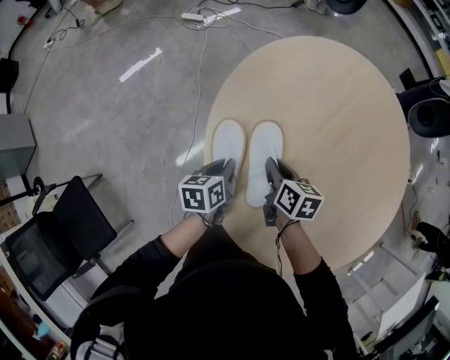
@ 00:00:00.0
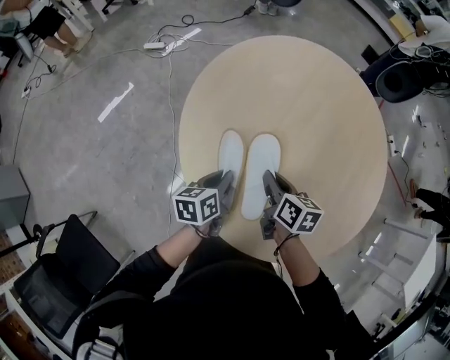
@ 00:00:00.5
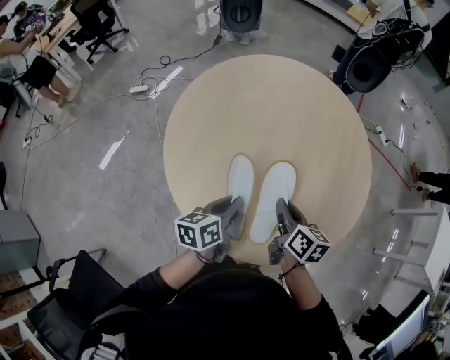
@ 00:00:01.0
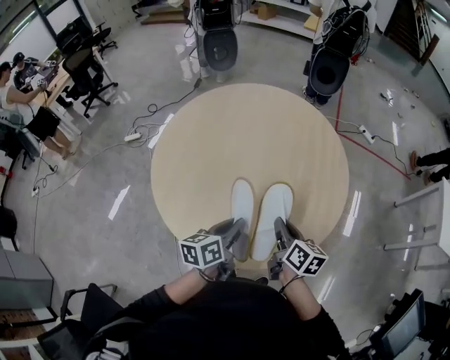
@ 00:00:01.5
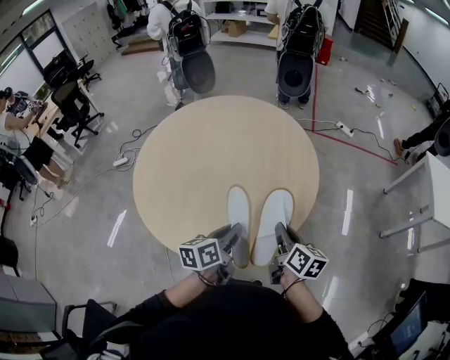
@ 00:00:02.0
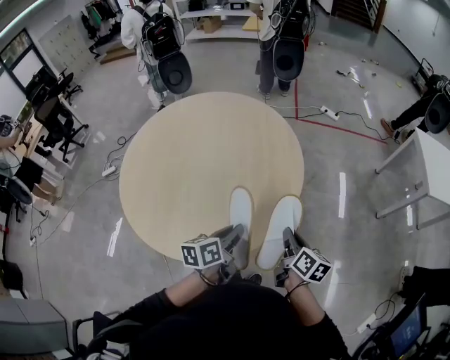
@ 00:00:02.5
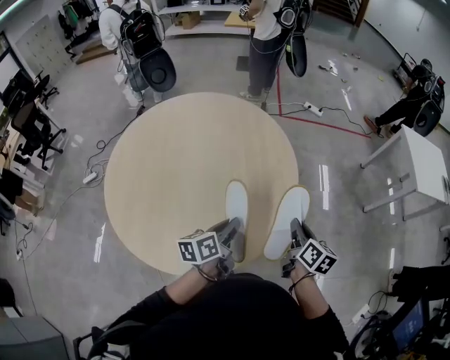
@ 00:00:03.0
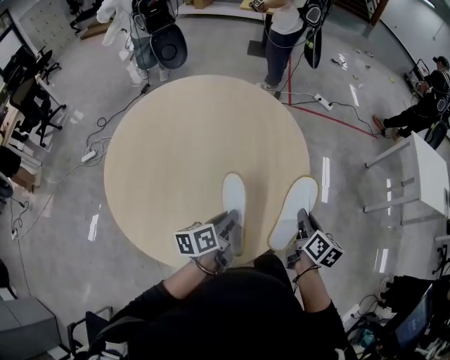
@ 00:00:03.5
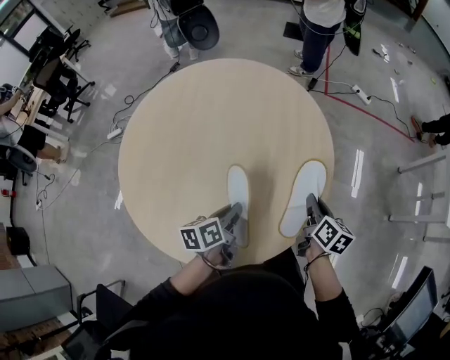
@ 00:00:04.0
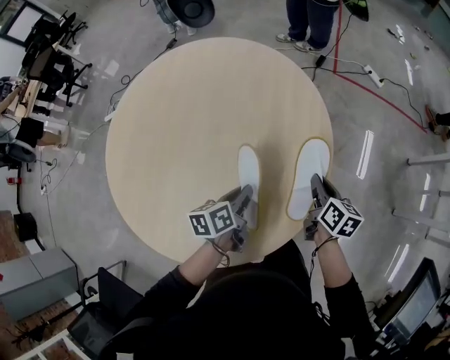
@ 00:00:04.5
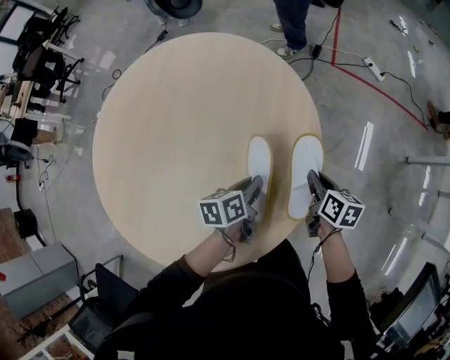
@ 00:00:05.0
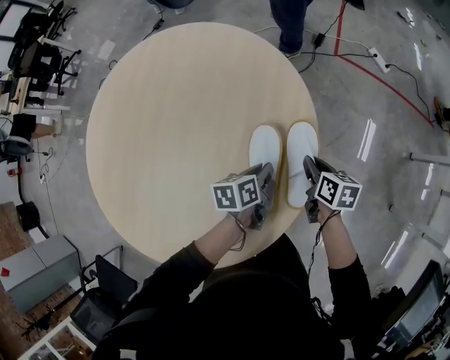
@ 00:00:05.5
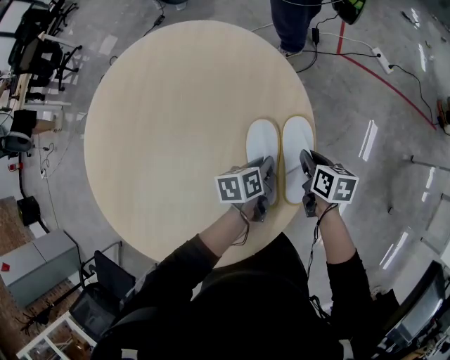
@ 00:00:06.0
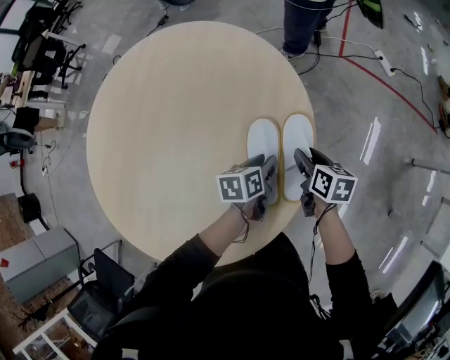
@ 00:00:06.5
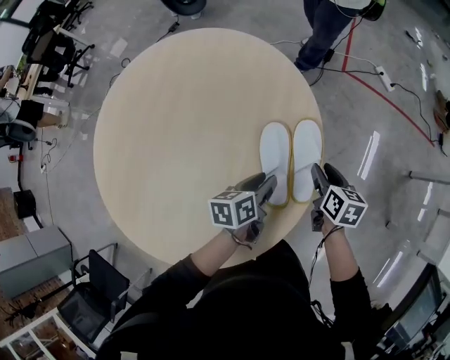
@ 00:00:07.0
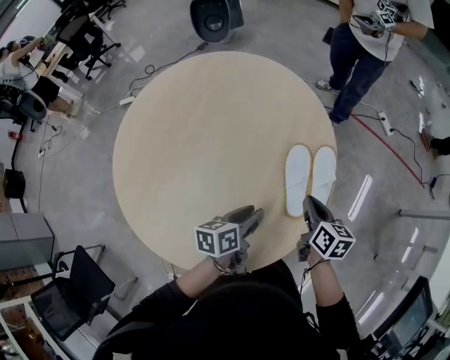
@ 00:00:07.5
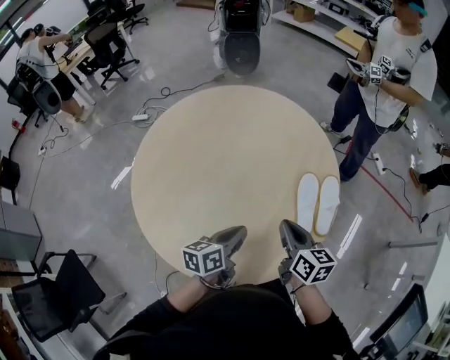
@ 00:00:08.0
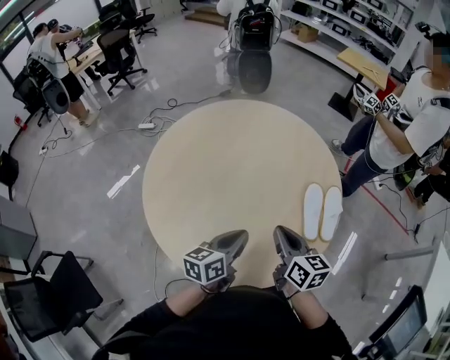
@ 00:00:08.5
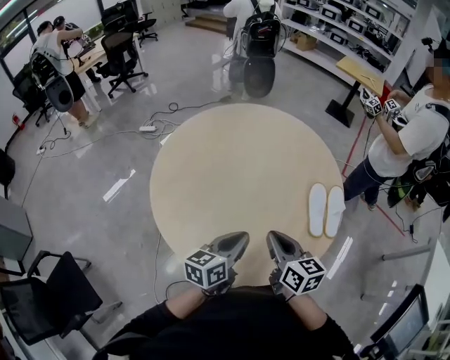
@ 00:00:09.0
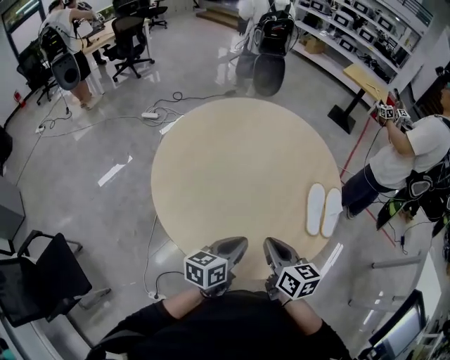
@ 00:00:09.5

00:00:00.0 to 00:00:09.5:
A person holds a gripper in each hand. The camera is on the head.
00:00:00.0 to 00:00:02.0: The pair of grippers is taken roughly 50 cm. The left gripper changes its angle by approximately 40 degrees. The right gripper turns by about 50 degrees.
00:00:02.0 to 00:00:04.0: The left gripper heads forward and downward, covering roughly 20 cm. Meanwhile the right gripper moves forward, about 20 cm.
00:00:04.0 to 00:00:05.5: The left gripper is displaced forward, to the right and downward by approximately 35 cm; the right gripper travels forward, downward and to the right by approximately 30 cm, and changes its angle by roughly 30 degrees.
00:00:05.5 to 00:00:07.5: The left gripper shifts approximately 20 cm backward, to the left and upward, and opens up, while the right gripper shifts about 20 cm upward, to the left and backward, and opens and closes again.
00:00:07.5 to 00:00:09.5: Both grippers travel together to the left, backward and upward, roughly 35 cm. The right gripper changes its angle by some 30 degrees; the left gripper closes.

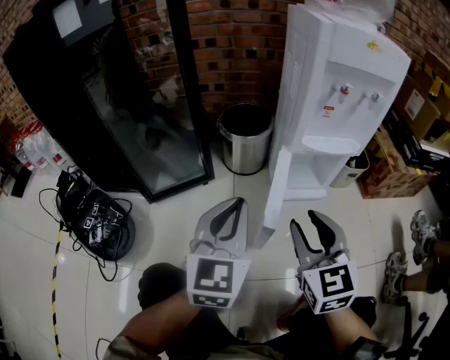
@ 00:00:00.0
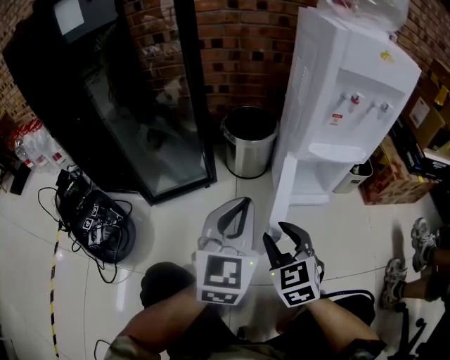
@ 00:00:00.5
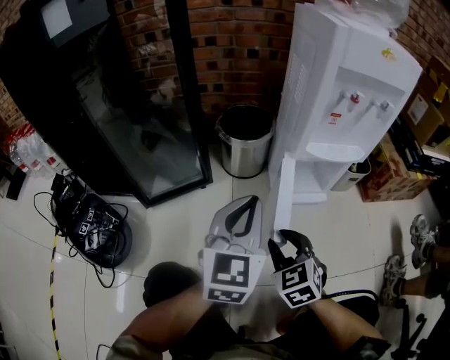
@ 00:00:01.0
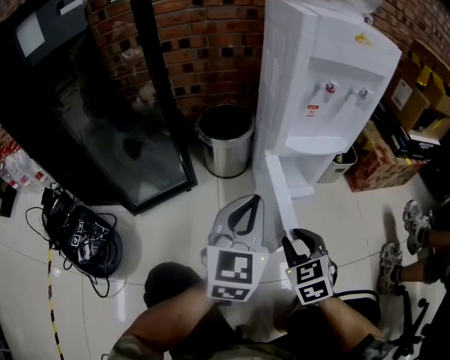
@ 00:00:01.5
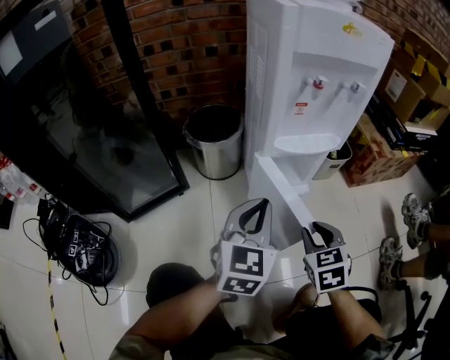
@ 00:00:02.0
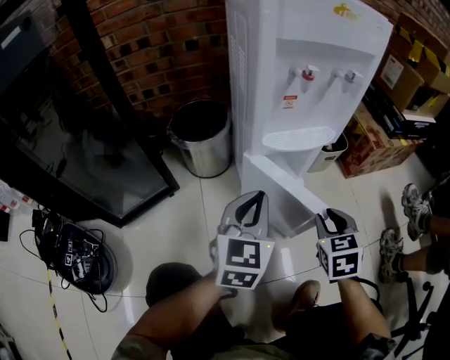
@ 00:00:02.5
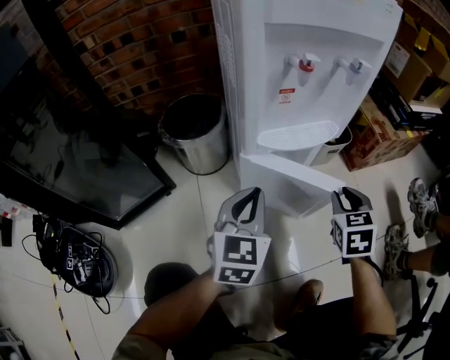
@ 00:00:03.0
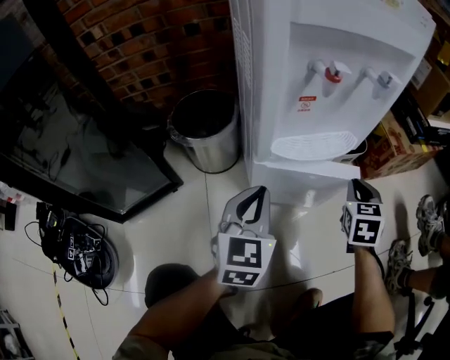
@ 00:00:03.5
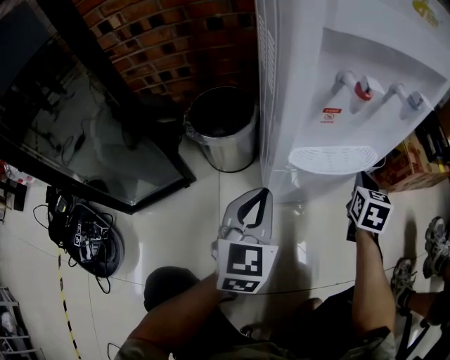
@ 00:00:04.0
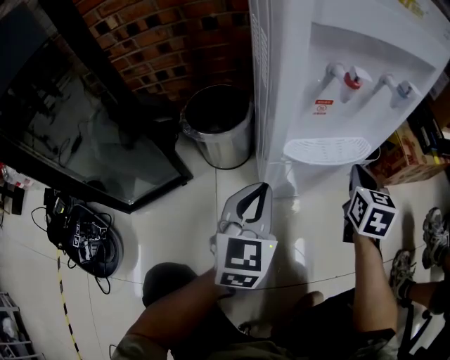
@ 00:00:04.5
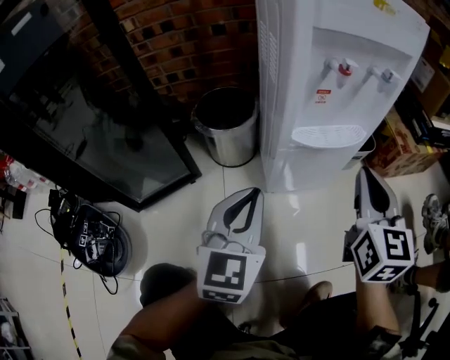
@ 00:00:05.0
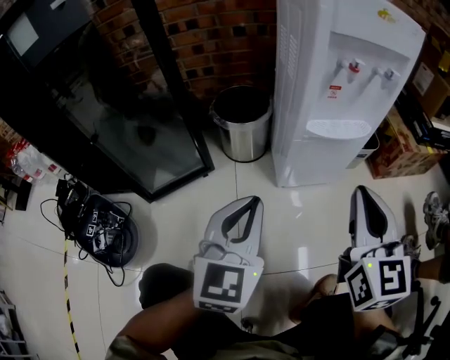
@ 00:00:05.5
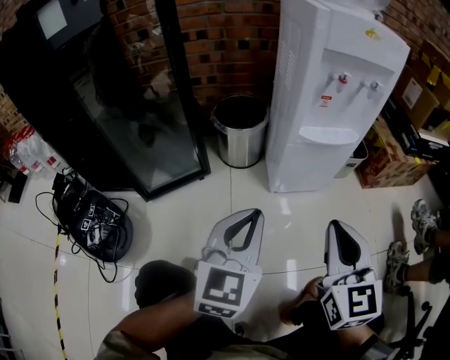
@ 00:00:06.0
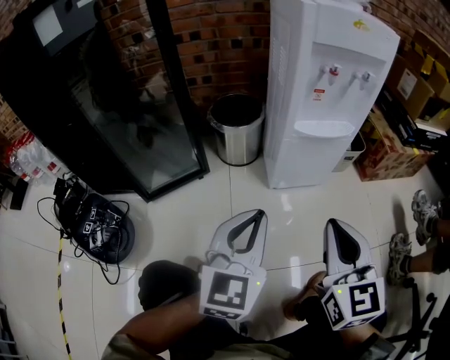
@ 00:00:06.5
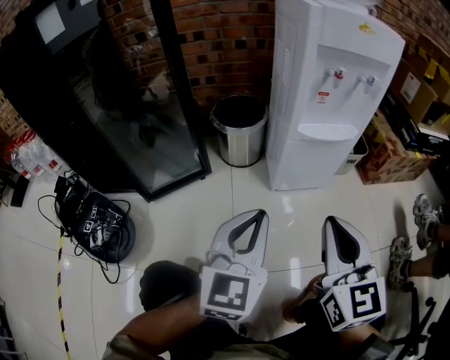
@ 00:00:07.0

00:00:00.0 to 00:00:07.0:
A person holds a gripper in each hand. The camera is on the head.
00:00:00.0 to 00:00:02.0: The right gripper heads downward and to the right, covering roughly 20 cm, and rotates roughly 30 degrees, while the left gripper heads to the right, forward and downward, covering roughly 15 cm.
00:00:02.0 to 00:00:03.5: The left gripper is displaced forward and downward by approximately 10 cm. The right gripper is displaced forward and to the right by about 20 cm.
00:00:03.5 to 00:00:05.0: The right gripper goes roughly 20 cm upward, to the left and backward, and changes its angle by approximately 30 degrees, while the left gripper travels backward and upward by some 10 cm.
00:00:05.0 to 00:00:07.0: The right gripper moves backward and to the left, roughly 20 cm, while the left gripper moves backward, about 15 cm.

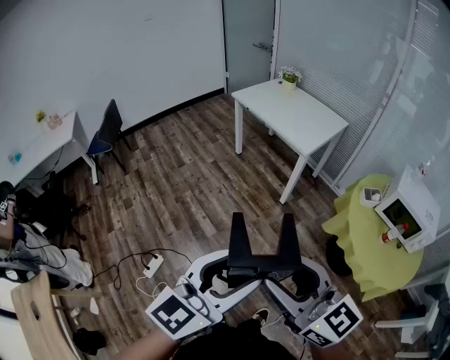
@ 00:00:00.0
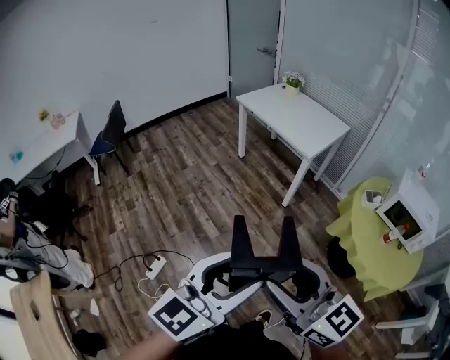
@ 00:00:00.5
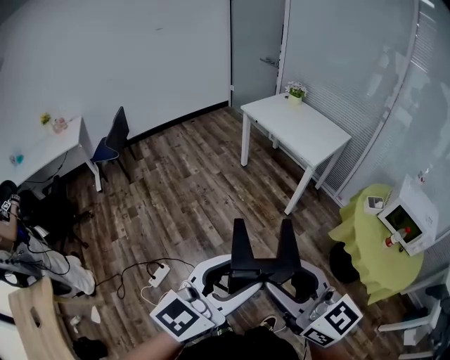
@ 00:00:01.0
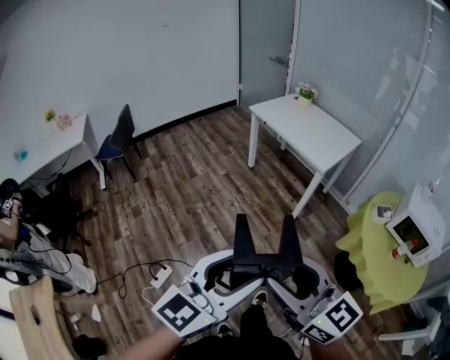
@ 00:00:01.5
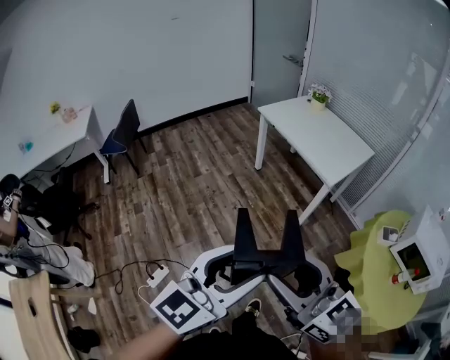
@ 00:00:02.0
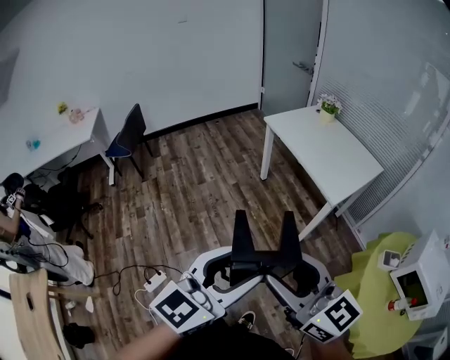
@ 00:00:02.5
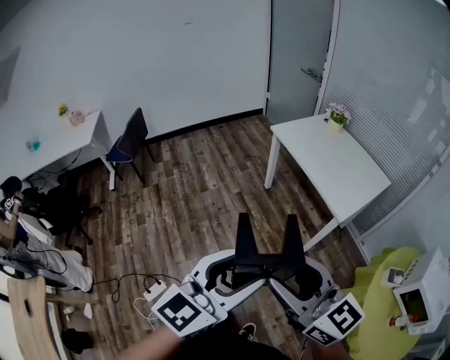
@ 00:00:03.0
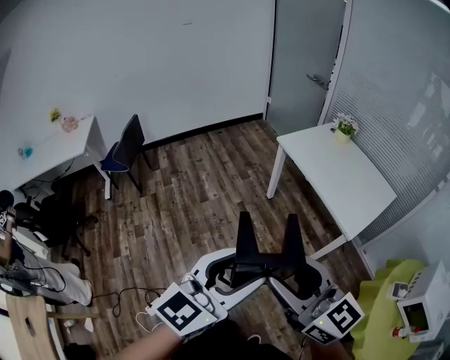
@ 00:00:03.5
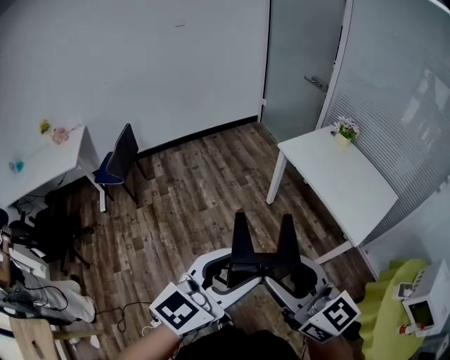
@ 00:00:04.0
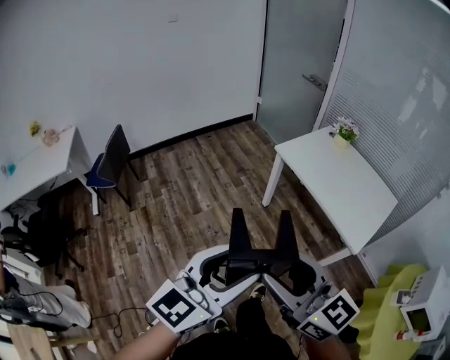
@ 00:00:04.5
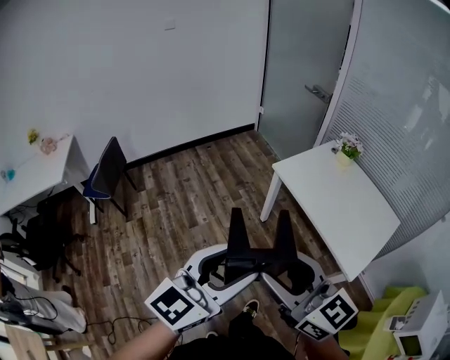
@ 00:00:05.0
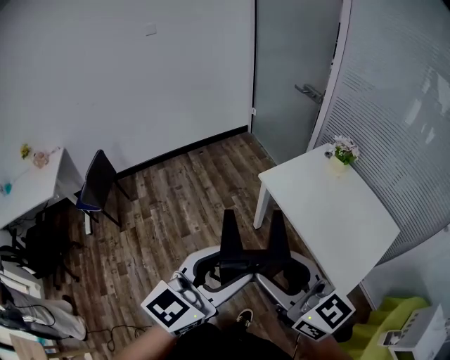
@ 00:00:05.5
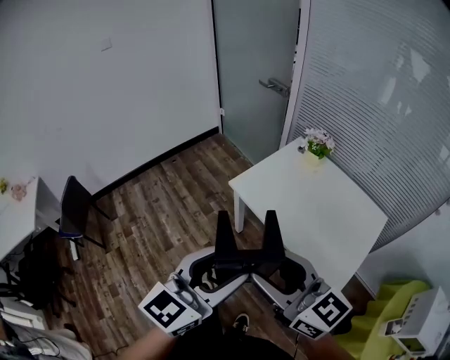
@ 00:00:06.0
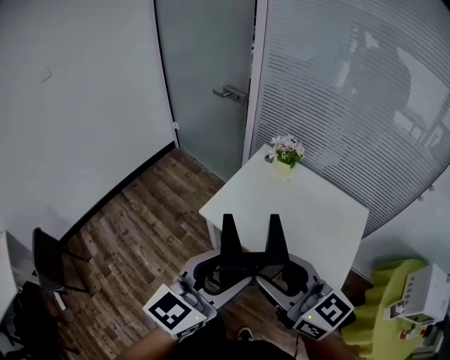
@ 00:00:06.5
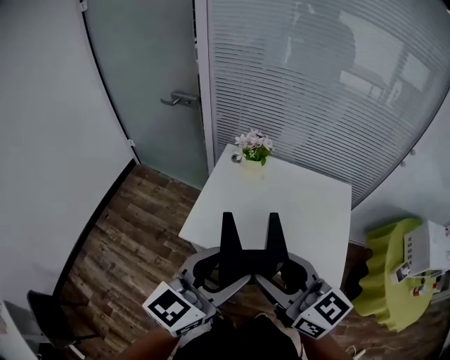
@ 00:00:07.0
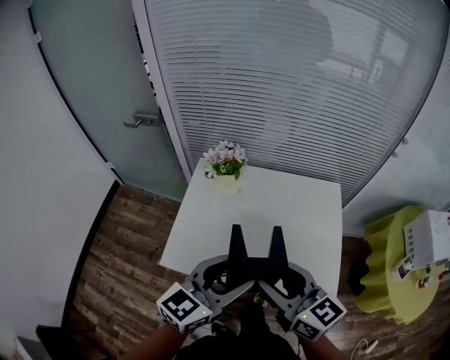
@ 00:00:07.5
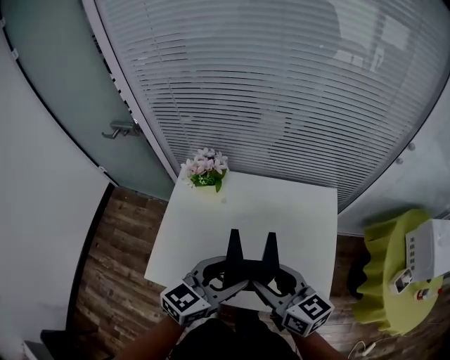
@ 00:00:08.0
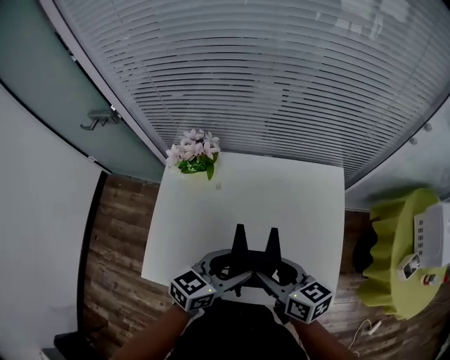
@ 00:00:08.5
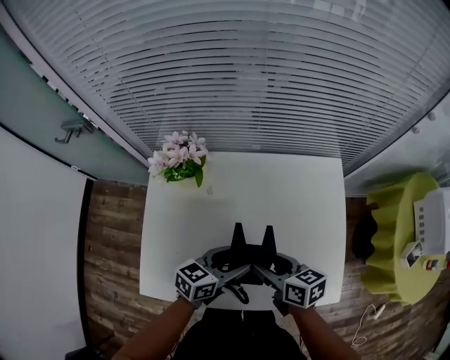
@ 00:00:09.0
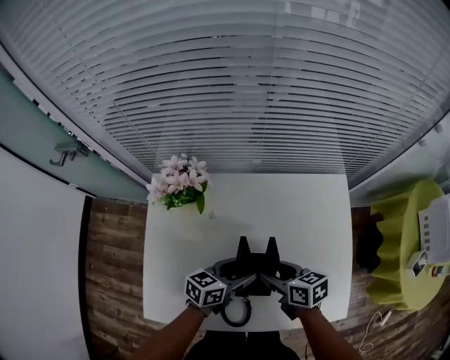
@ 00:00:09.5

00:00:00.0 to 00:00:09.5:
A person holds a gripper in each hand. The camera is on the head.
00:00:00.0 to 00:00:02.0: The two grippers go about 15 cm forward and to the left.
00:00:02.0 to 00:00:04.0: Both grippers travel together forward, approximately 35 cm.
00:00:04.0 to 00:00:05.5: Both grippers move forward, roughly 30 cm.
00:00:05.5 to 00:00:07.5: The right gripper shifts by roughly 40 cm, and changes its angle by approximately 50 degrees. The left gripper shifts by some 40 cm, and turns by approximately 50 degrees.
00:00:07.5 to 00:00:09.5: Both grippers move downward and forward, roughly 40 cm. The right gripper changes its angle by some 40 degrees; the left gripper turns by approximately 40 degrees.
